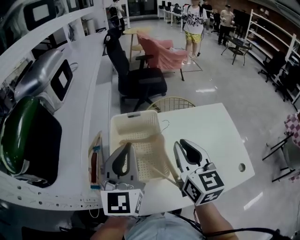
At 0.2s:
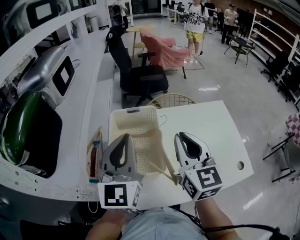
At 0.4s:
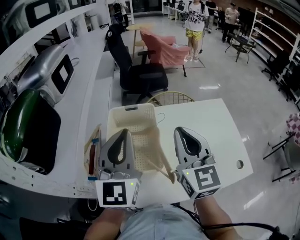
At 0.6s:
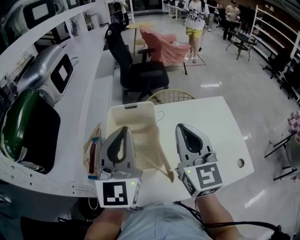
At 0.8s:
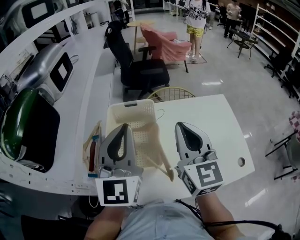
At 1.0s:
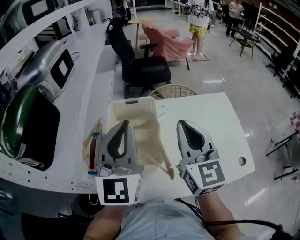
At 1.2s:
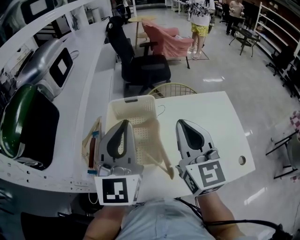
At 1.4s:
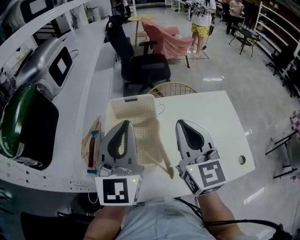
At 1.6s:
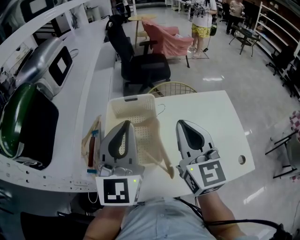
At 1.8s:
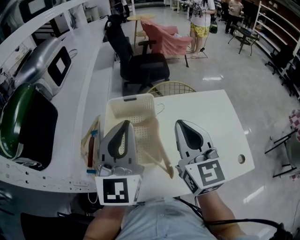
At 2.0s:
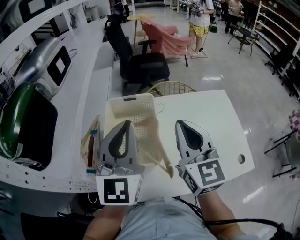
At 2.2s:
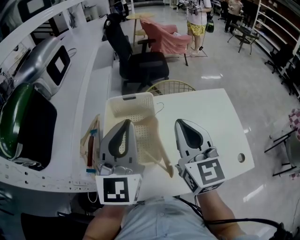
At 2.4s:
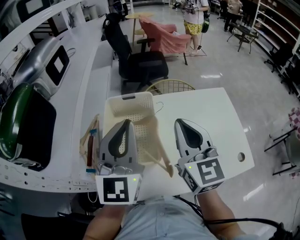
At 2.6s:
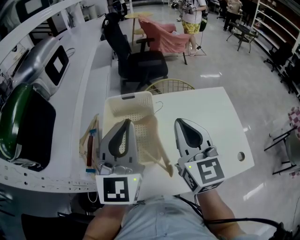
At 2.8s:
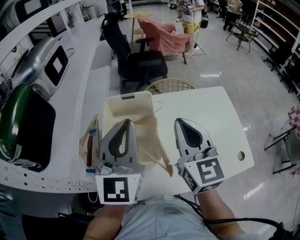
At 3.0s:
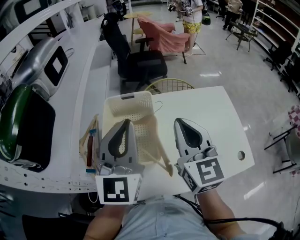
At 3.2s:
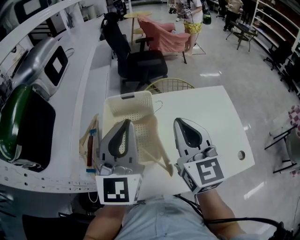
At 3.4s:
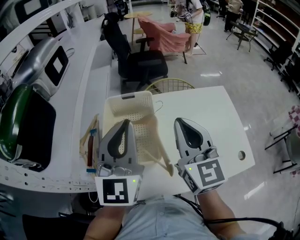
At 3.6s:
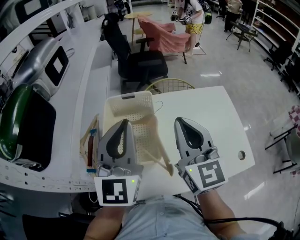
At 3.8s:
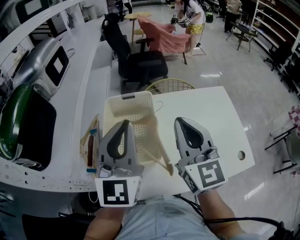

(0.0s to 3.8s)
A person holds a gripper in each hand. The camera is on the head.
0.0s - 1.2s: The left gripper ends up approximately 5 cm from where it was.
1.2s - 3.8s: The grippers move only a little.

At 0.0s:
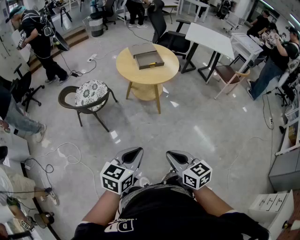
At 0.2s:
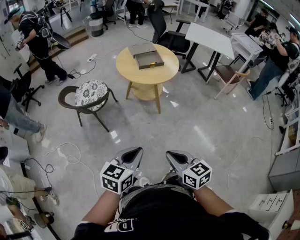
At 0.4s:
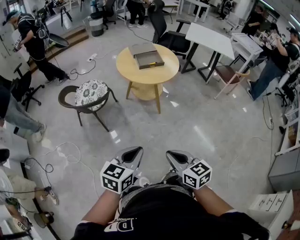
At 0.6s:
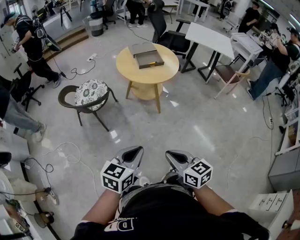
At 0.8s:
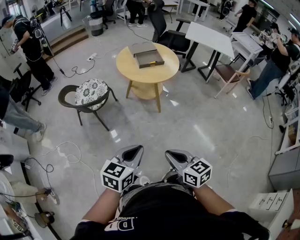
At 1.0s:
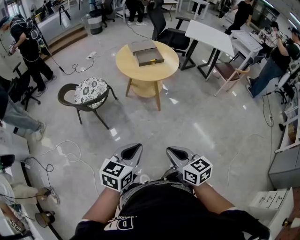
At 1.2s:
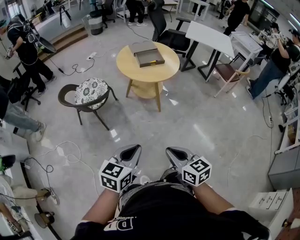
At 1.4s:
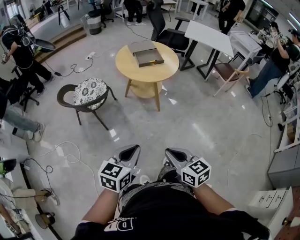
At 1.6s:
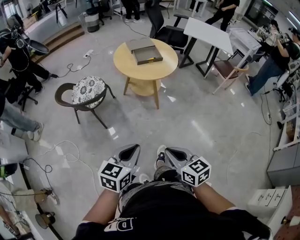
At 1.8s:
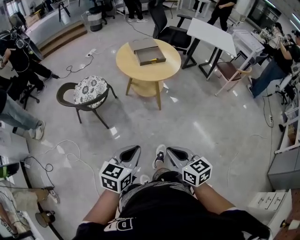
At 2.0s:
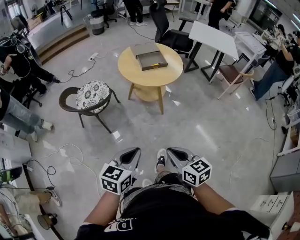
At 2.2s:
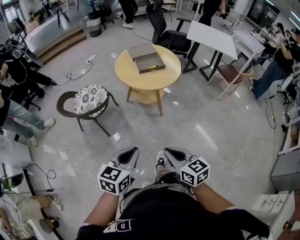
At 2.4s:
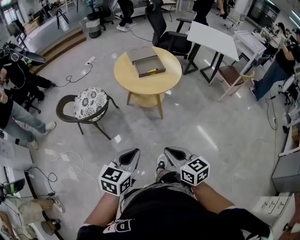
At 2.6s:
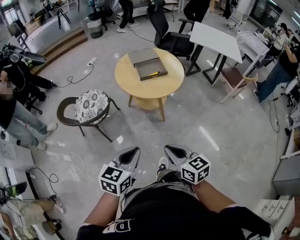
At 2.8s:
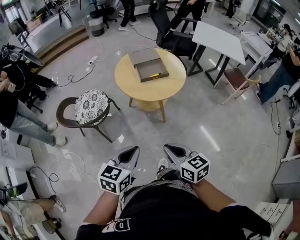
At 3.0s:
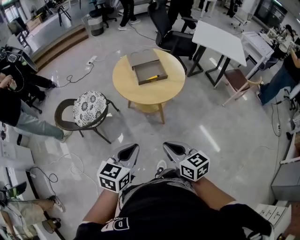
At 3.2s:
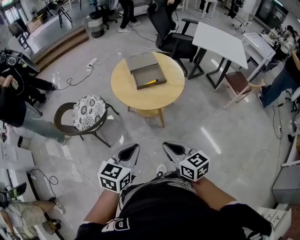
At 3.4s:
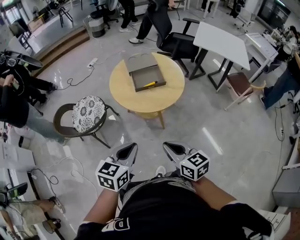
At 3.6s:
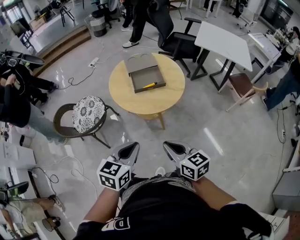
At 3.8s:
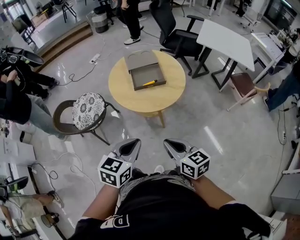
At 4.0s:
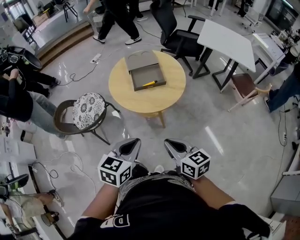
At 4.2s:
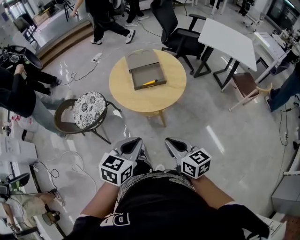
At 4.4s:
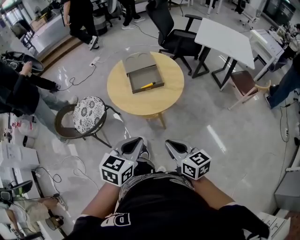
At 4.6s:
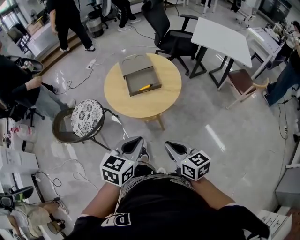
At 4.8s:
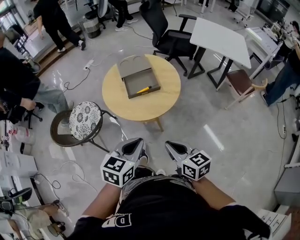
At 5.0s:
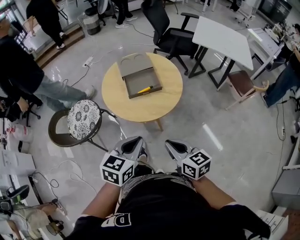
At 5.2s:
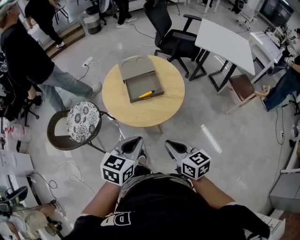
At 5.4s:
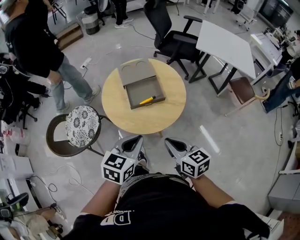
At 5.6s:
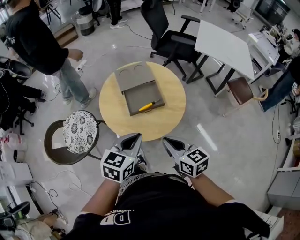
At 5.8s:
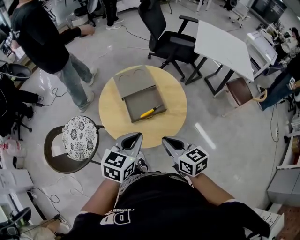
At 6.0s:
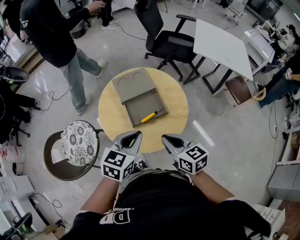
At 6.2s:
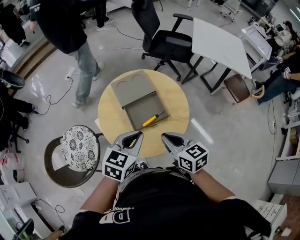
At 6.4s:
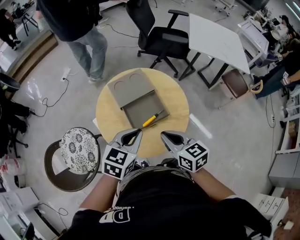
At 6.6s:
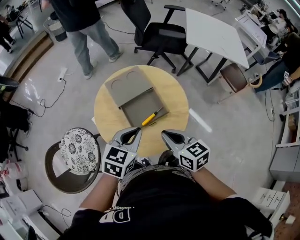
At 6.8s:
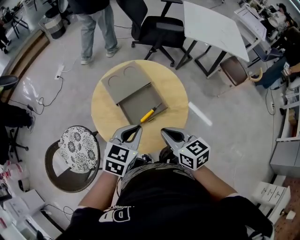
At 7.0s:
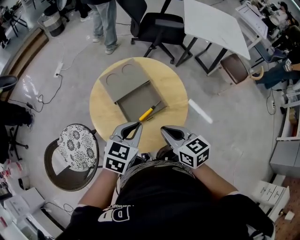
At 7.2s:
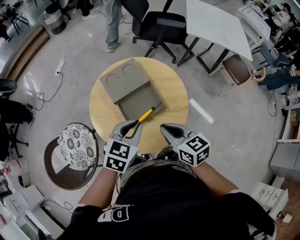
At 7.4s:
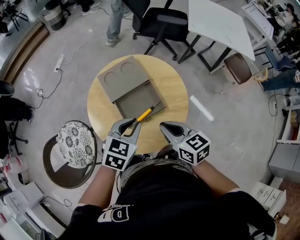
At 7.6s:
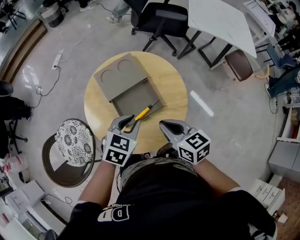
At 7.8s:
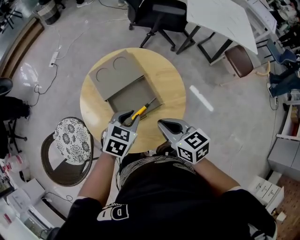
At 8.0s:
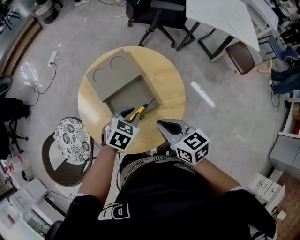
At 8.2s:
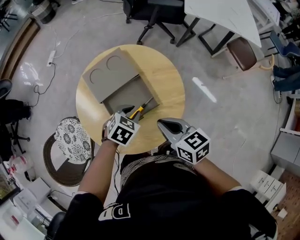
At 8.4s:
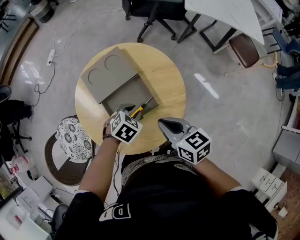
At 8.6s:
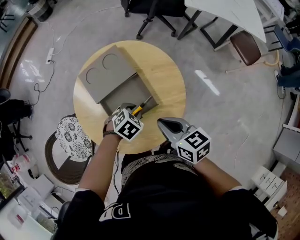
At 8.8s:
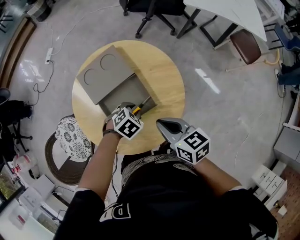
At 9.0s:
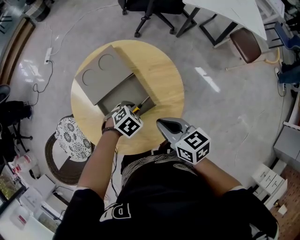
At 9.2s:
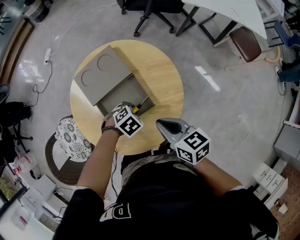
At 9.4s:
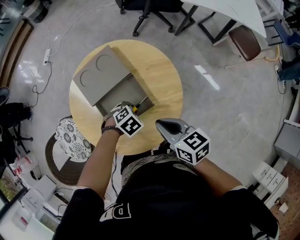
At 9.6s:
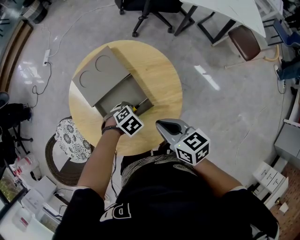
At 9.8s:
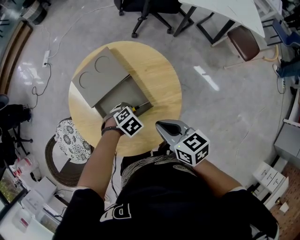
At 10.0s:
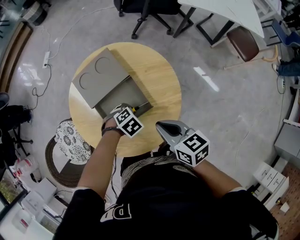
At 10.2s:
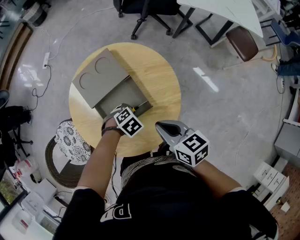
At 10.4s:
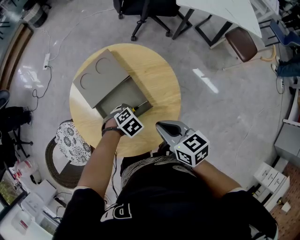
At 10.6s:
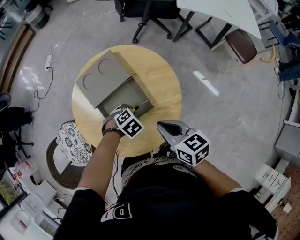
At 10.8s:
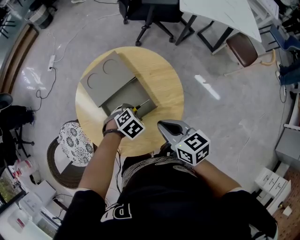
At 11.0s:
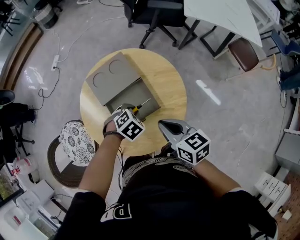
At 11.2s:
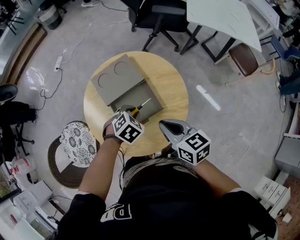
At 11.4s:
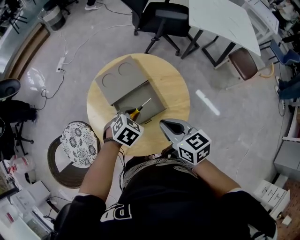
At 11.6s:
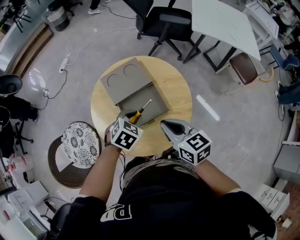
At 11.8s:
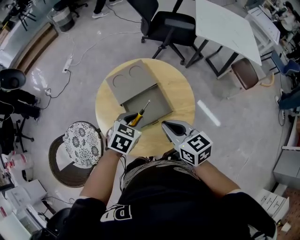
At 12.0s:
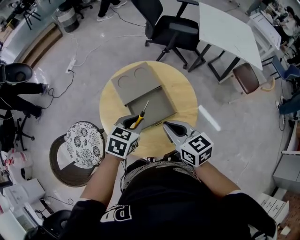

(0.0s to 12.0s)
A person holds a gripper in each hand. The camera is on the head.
0.0s - 1.6s: There are only small adjustments of the grippers.
1.6s - 3.0s: Both grippers travel together forward, approximately 25 cm.
3.0s - 4.4s: The grippers both shift forward and to the right by about 15 cm.
4.4s - 6.0s: The two grippers go roughly 30 cm forward.
6.0s - 7.6s: The left gripper moves forward and downward, approximately 15 cm, while the right gripper goes some 10 cm forward.
7.6s - 9.0s: The left gripper is displaced downward by roughly 15 cm, and swivels roughly 40 degrees; the right gripper moves downward, some 5 cm.
9.0s - 10.4s: The grippers stay close to where they were, moving slightly.
10.4s - 12.0s: The left gripper travels upward by approximately 20 cm, and tips its fingers upward by about 40 degrees; the right gripper moves roughly 15 cm.

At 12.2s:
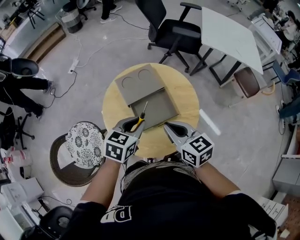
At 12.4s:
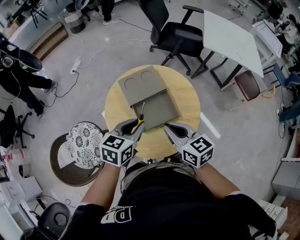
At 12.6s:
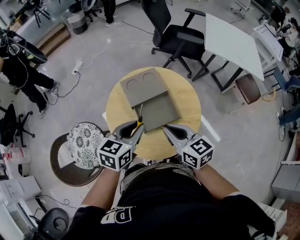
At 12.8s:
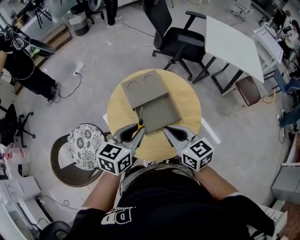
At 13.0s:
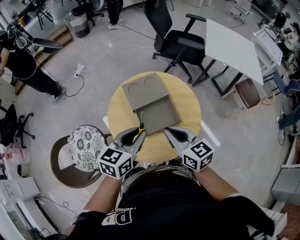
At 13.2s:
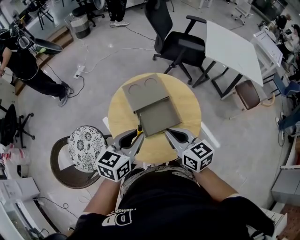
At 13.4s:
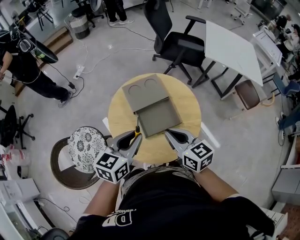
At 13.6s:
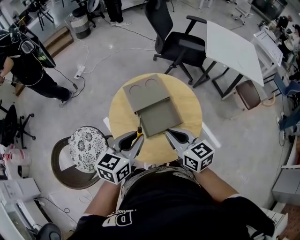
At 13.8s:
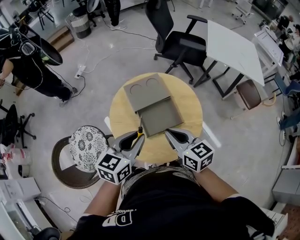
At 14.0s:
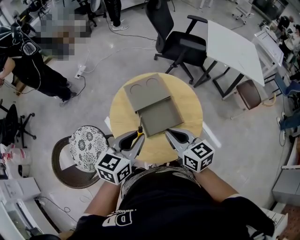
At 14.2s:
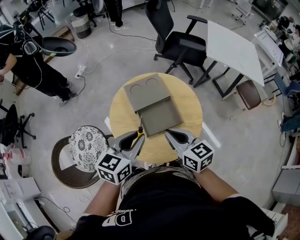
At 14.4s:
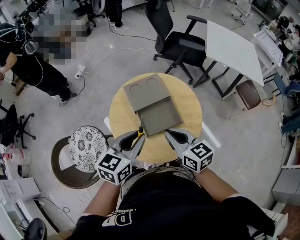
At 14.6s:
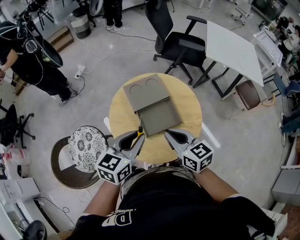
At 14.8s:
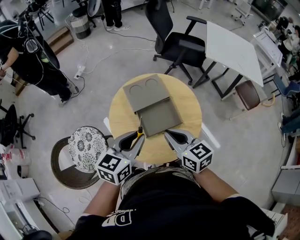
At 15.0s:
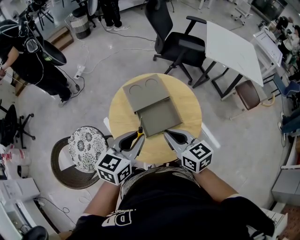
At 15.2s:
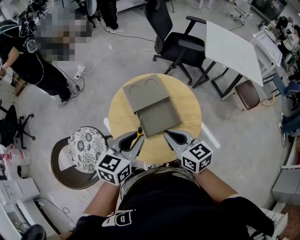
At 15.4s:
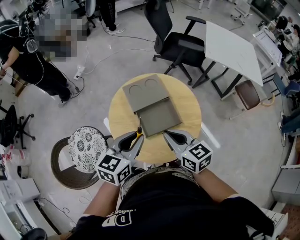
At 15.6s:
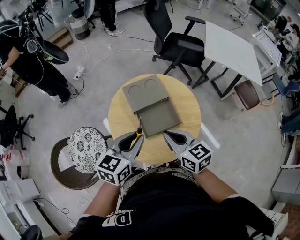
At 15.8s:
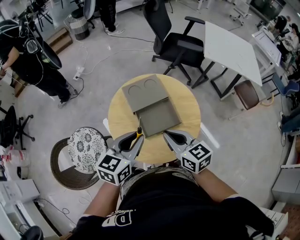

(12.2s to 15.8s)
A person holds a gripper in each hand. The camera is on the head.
12.2s - 14.0s: The left gripper travels upward by approximately 5 cm.
14.0s - 15.8s: Both grippers stay about where they are.

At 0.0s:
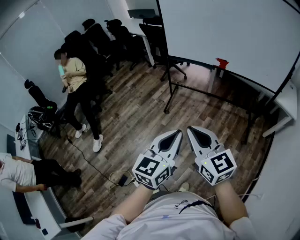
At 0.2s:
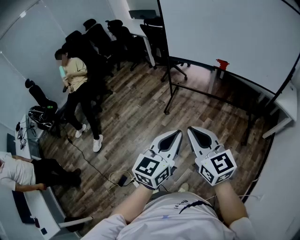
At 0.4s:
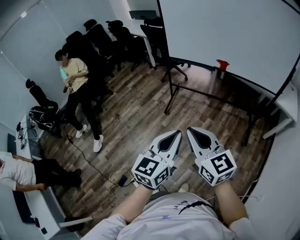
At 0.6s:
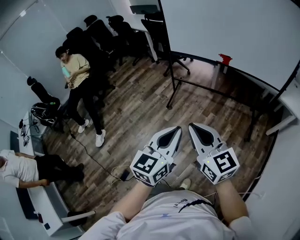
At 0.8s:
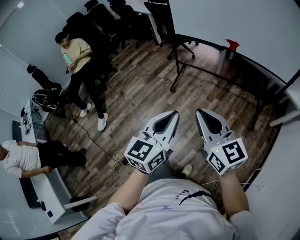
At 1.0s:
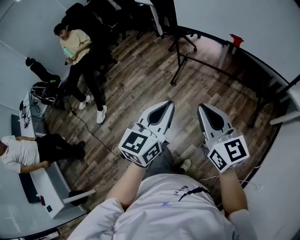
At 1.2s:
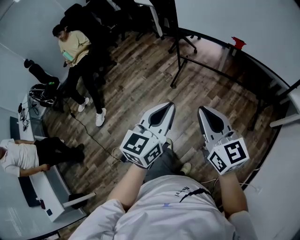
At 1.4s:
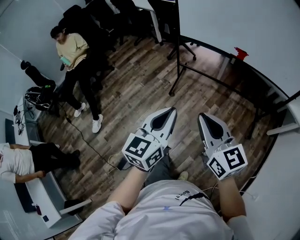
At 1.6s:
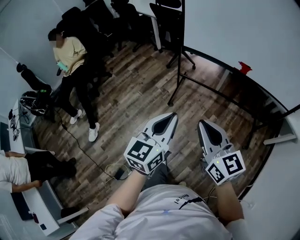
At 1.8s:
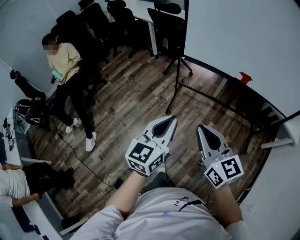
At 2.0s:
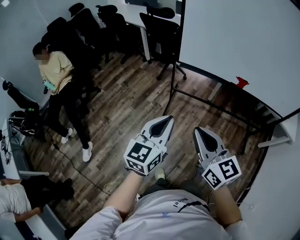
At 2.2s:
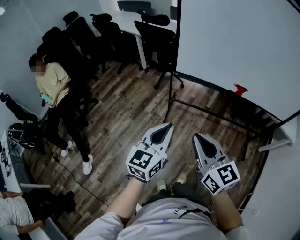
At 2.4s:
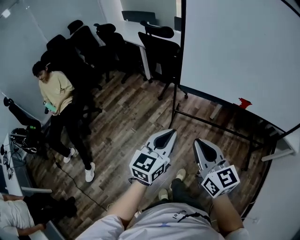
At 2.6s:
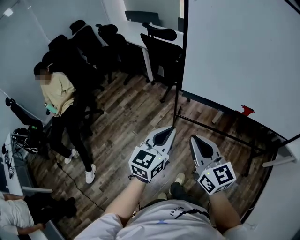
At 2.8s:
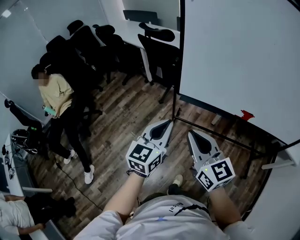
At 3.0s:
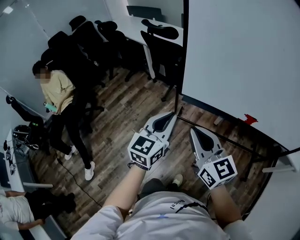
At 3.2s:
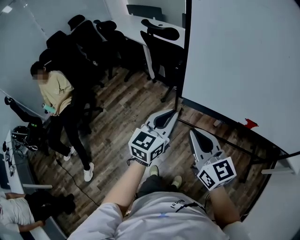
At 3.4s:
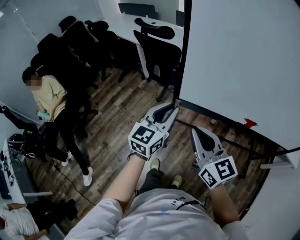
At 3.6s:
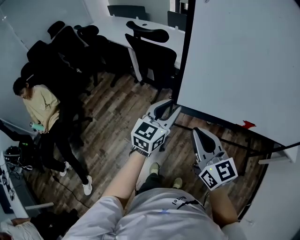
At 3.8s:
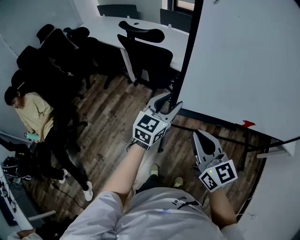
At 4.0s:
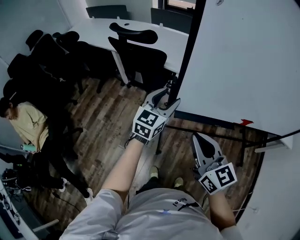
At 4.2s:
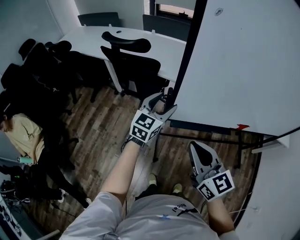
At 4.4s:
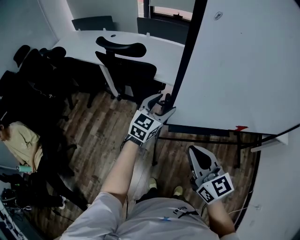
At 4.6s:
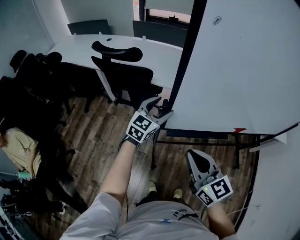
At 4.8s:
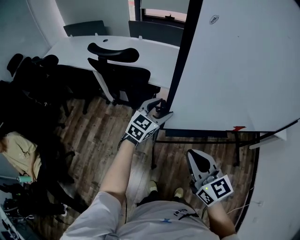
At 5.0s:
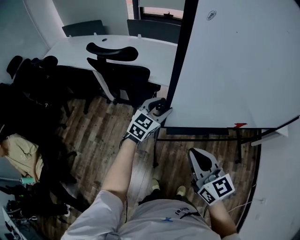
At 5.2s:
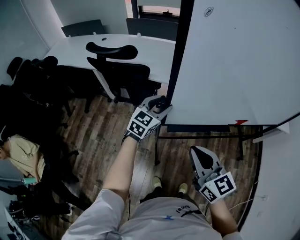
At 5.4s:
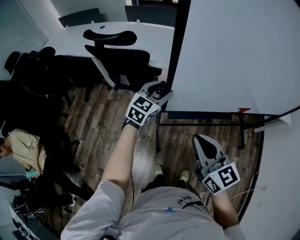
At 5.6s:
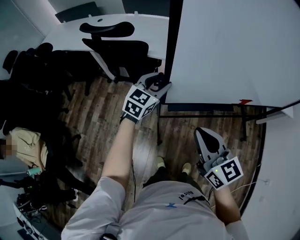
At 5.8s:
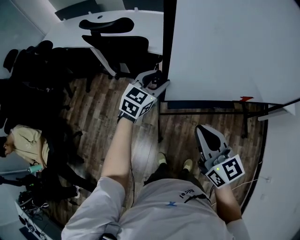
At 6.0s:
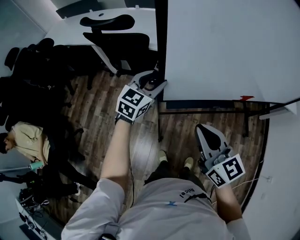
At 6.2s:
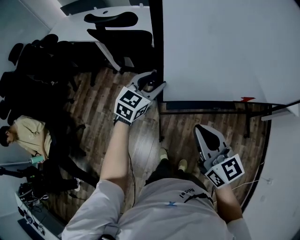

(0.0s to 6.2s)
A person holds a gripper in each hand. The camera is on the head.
0.0s - 1.6s: The left gripper heads forward and to the left, covering about 25 cm; the right gripper shifts approximately 20 cm forward.
1.6s - 3.2s: The grippers both shift forward by roughly 40 cm.
3.2s - 4.6s: The left gripper is displaced forward by about 30 cm, rotates roughly 30 degrees, and opens its fingers. The right gripper is displaced forward and to the left by approximately 15 cm, and turns by some 20 degrees.
4.6s - 6.2s: The left gripper is displaced backward by about 5 cm, and closes; the right gripper changes place by approximately 5 cm.
